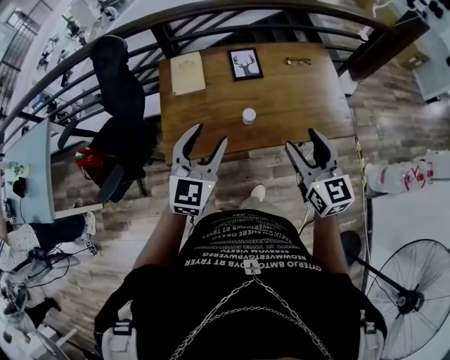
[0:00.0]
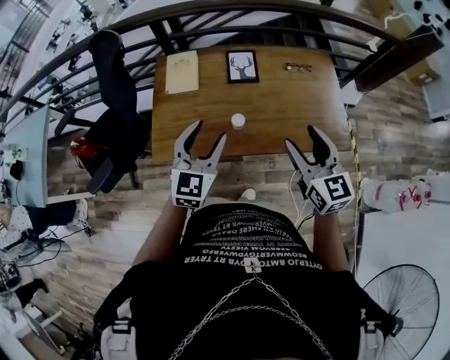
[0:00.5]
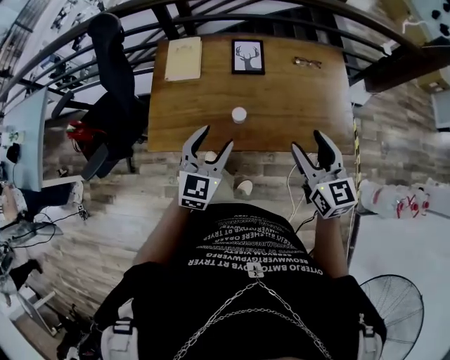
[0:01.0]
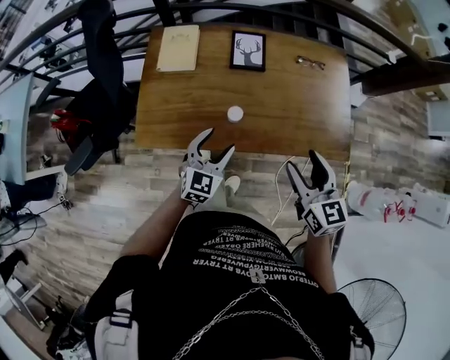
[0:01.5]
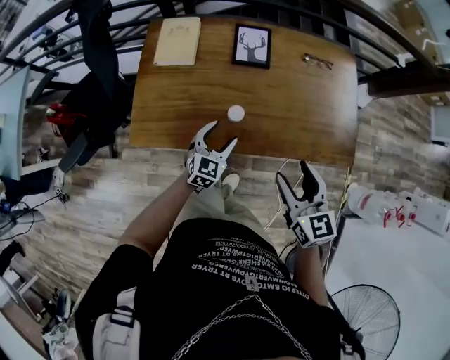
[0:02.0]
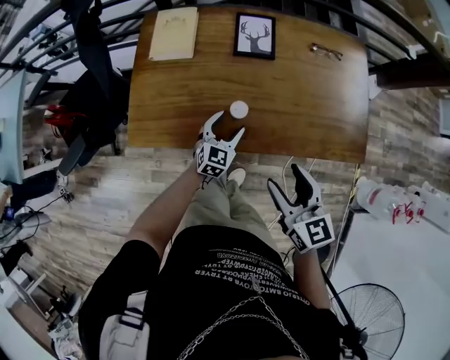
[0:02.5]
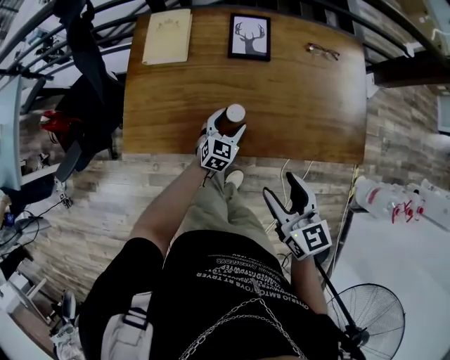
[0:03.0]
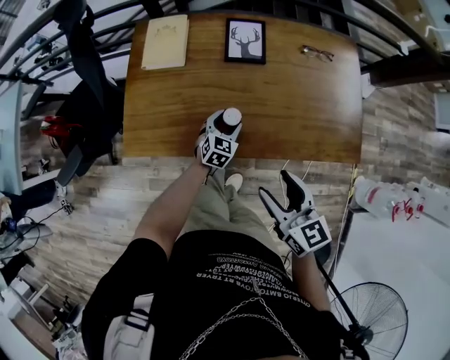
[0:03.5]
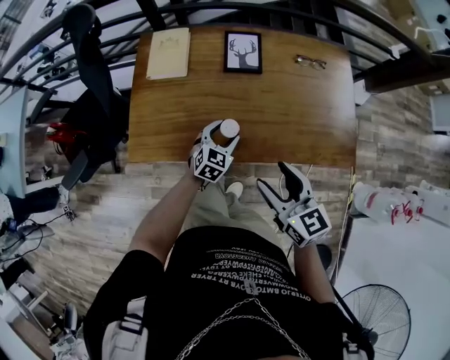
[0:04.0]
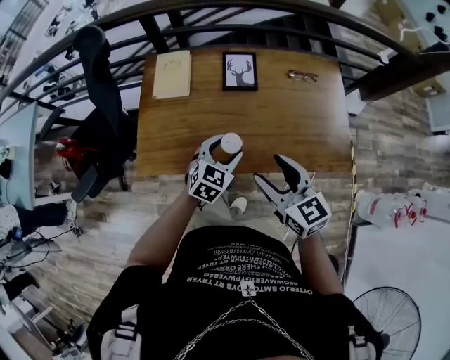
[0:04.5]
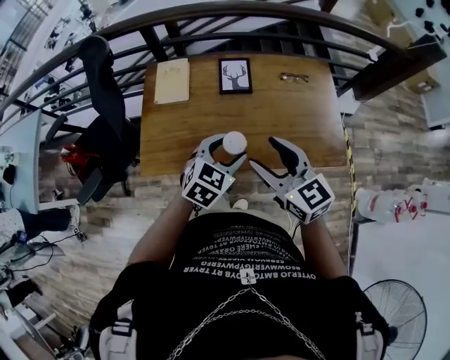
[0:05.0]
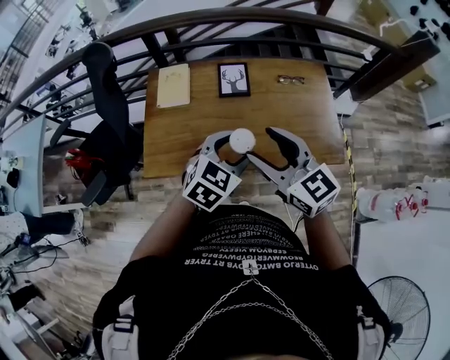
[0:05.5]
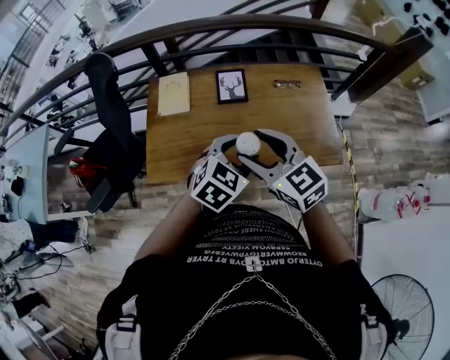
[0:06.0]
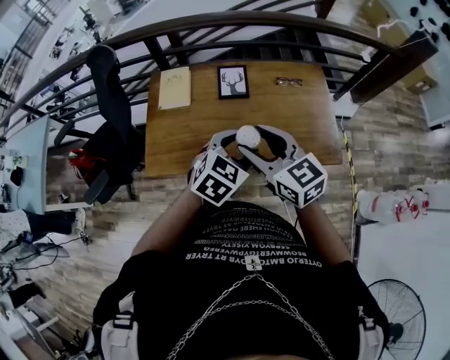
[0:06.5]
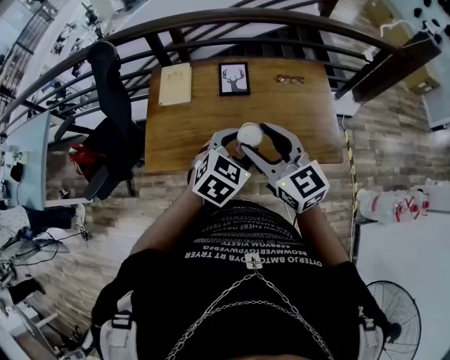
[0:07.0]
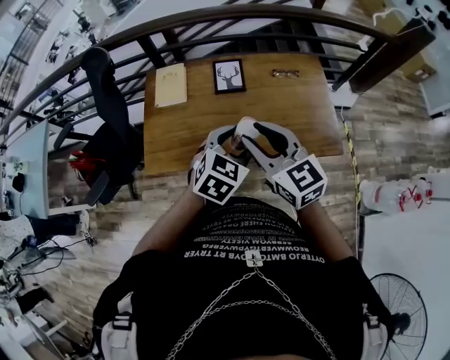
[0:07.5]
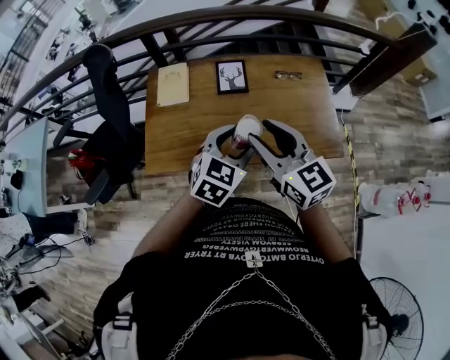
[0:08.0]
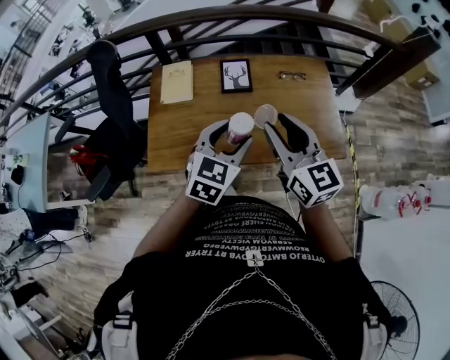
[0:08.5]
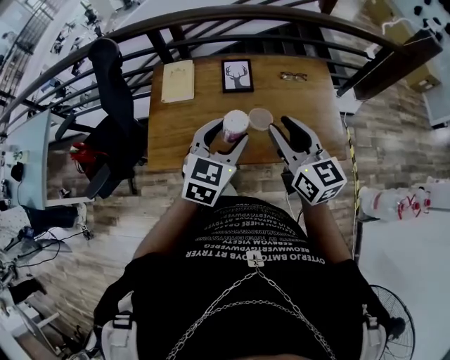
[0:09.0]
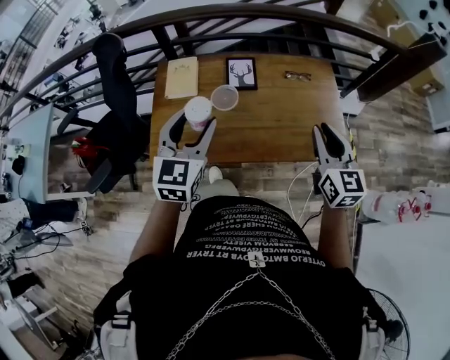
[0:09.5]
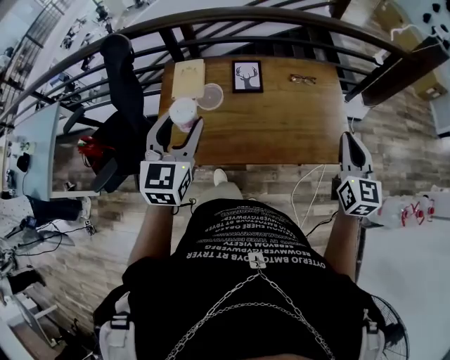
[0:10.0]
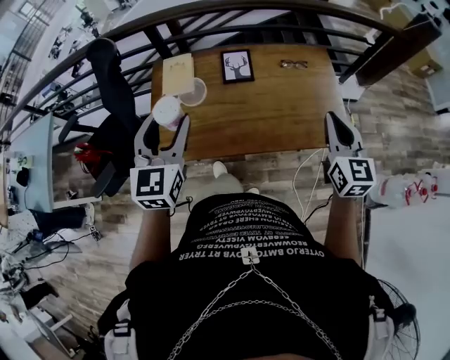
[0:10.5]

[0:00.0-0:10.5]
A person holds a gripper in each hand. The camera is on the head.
0.0 to 2.0 s: The right gripper goes roughly 15 cm downward and to the right. The left gripper travels downward by roughly 30 cm.
2.0 to 4.0 s: The left gripper reaches roughly 10 cm downward, then returns.
4.0 to 6.5 s: The right gripper travels upward by some 15 cm. Meanwhile the left gripper travels upward by some 30 cm.
6.5 to 8.5 s: The right gripper changes place by about 5 cm.
8.5 to 10.5 s: The left gripper is displaced to the left and upward by roughly 15 cm, and rotates about 30 degrees. Meanwhile the right gripper heads to the right, covering roughly 15 cm, rotates about 20 degrees, and closes up.

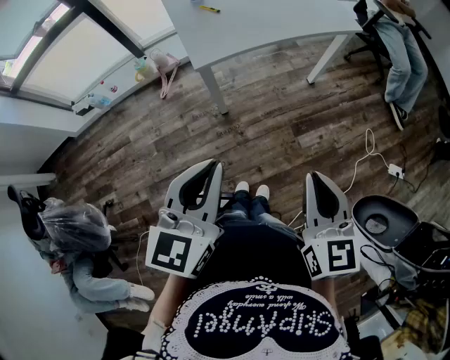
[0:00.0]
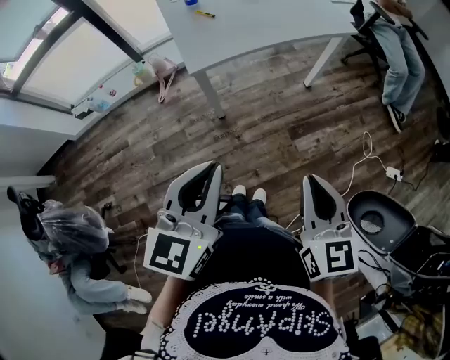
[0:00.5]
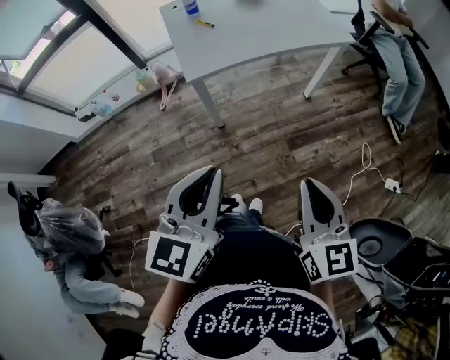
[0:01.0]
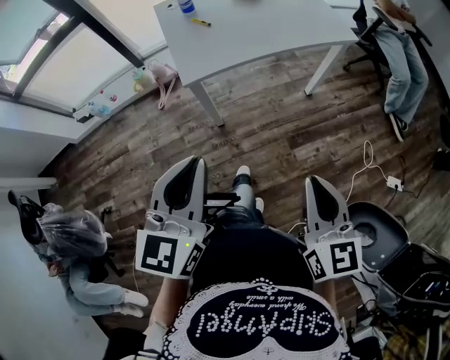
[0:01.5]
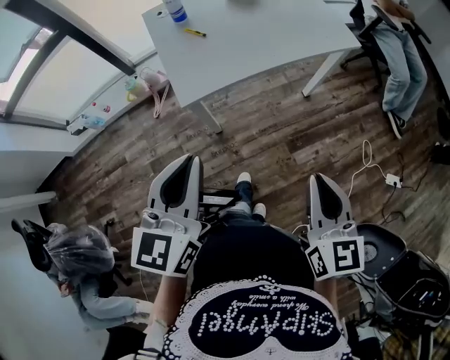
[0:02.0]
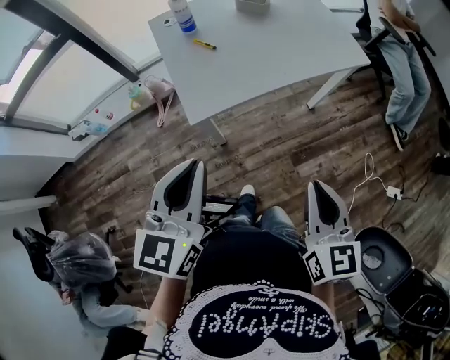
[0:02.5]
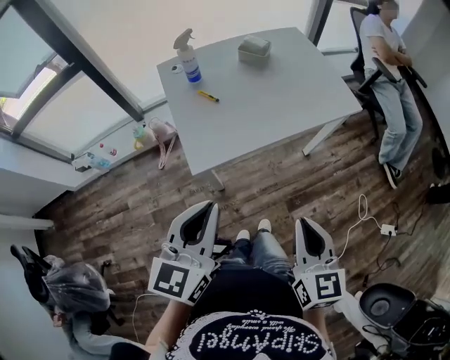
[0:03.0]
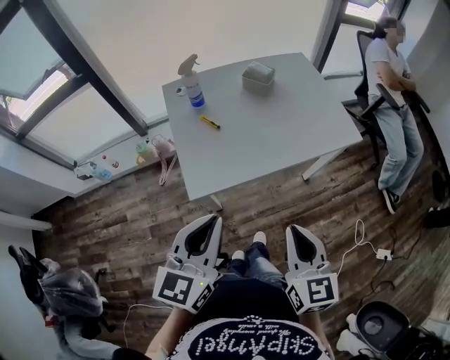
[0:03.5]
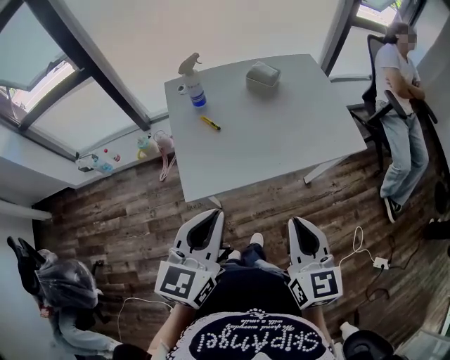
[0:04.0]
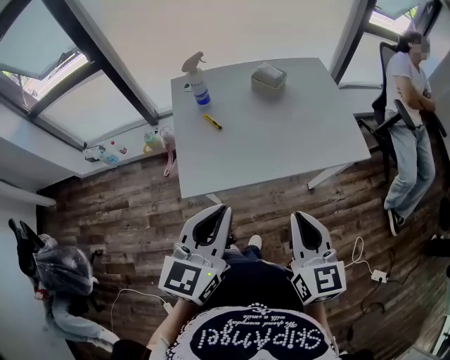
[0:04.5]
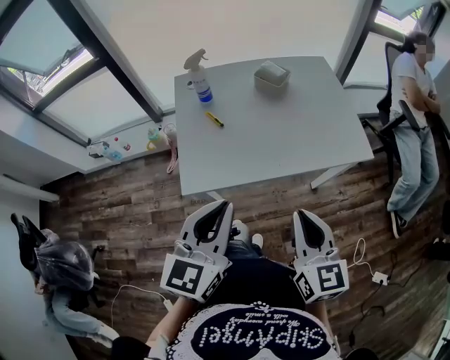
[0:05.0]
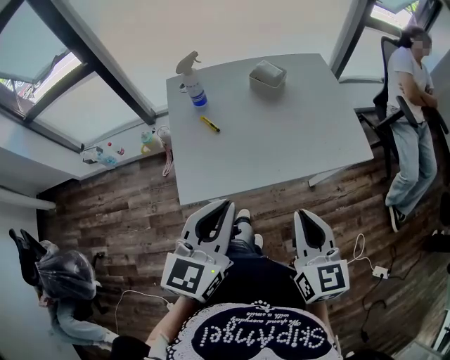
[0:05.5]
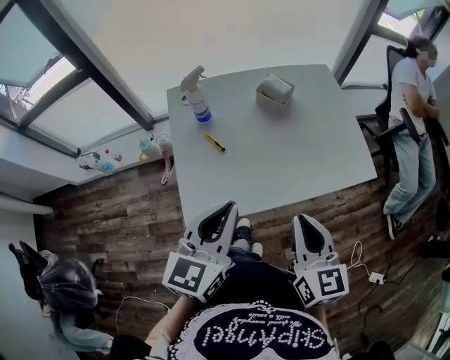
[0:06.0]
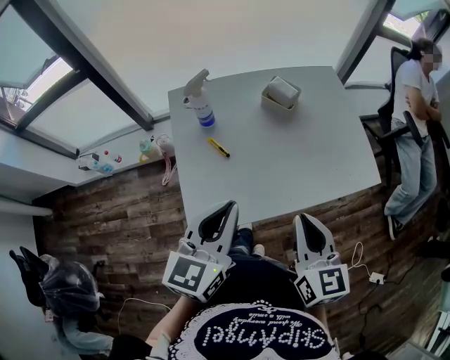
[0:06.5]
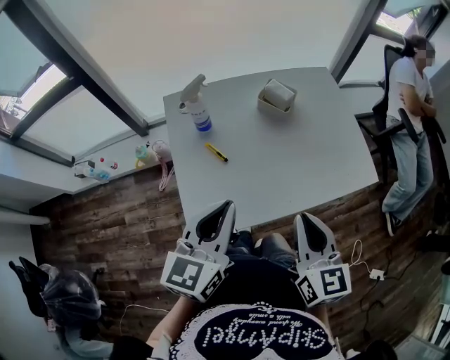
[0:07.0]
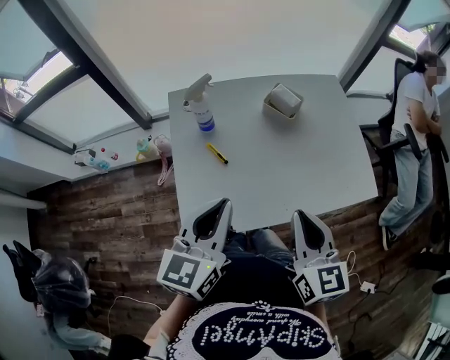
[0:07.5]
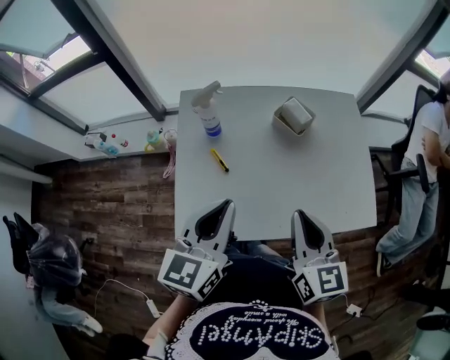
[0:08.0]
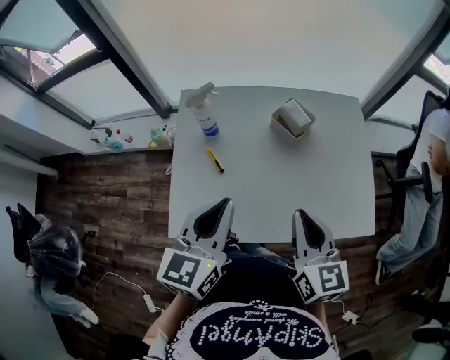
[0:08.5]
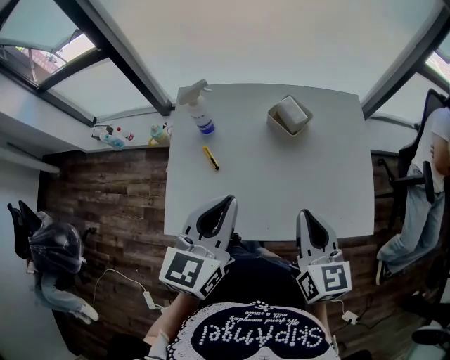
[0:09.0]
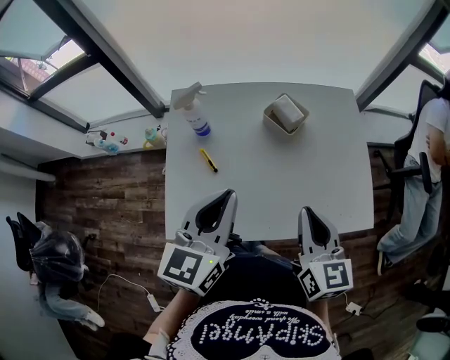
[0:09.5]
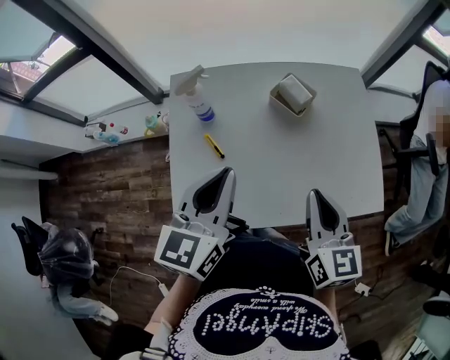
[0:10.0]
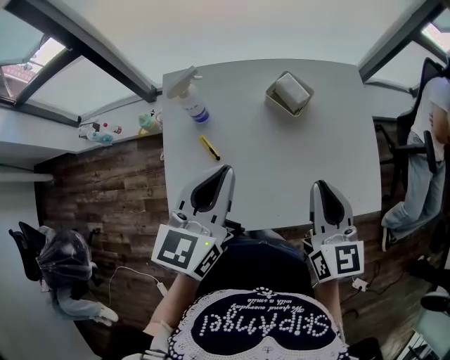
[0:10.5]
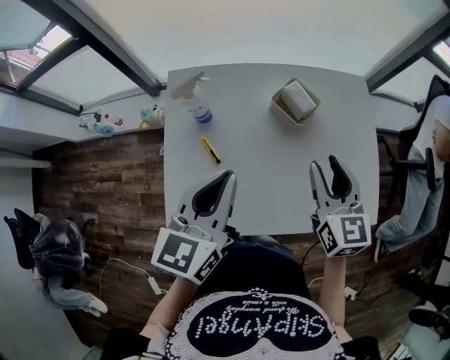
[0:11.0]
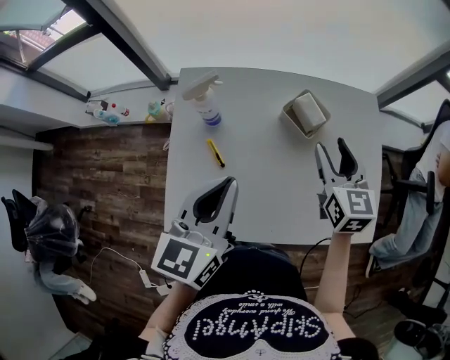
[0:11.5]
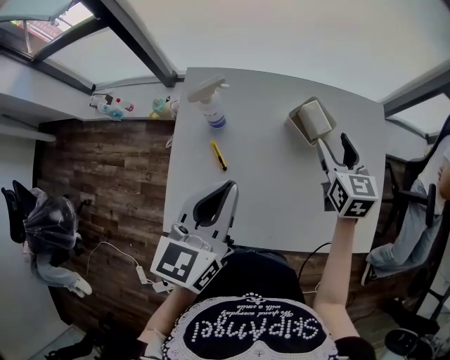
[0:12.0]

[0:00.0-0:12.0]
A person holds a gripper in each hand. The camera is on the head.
0.0 to 2.0 s: The grippers both shift forward by about 15 cm.
2.0 to 4.0 s: The two grippers go approximately 15 cm forward.
4.0 to 6.0 s: Both grippers move forward, roughly 10 cm.
6.0 to 8.0 s: Both grippers move forward, about 10 cm.
8.0 to 10.0 s: The right gripper shifts by about 5 cm; the left gripper travels forward by approximately 5 cm.
10.0 to 12.0 s: The right gripper travels forward by about 25 cm, and opens up.

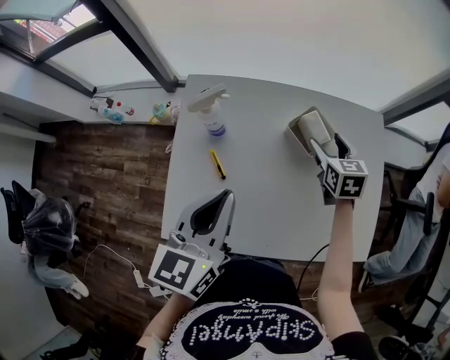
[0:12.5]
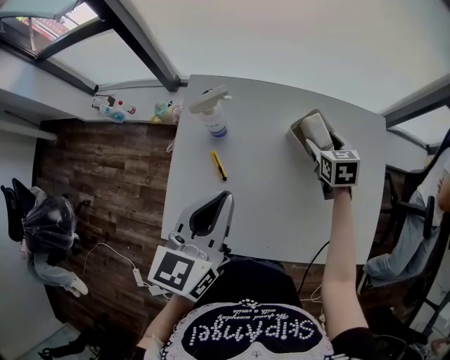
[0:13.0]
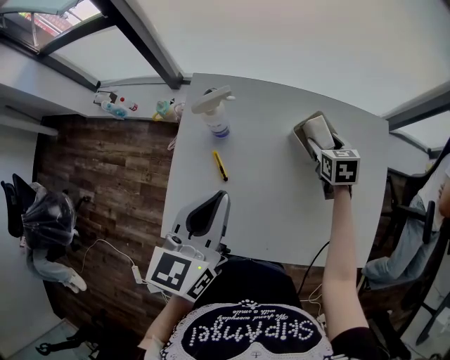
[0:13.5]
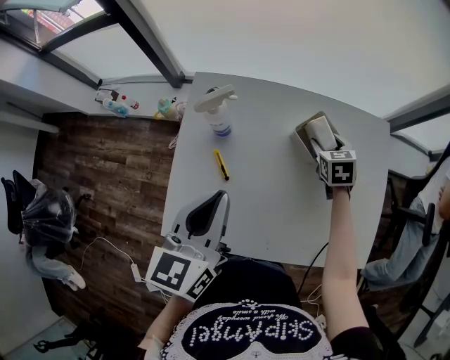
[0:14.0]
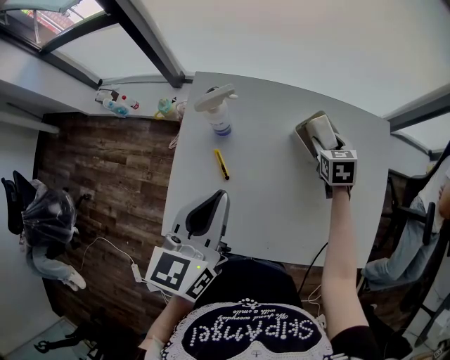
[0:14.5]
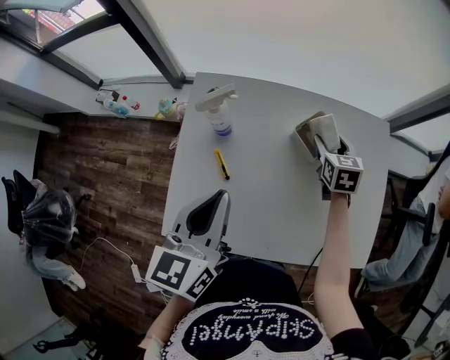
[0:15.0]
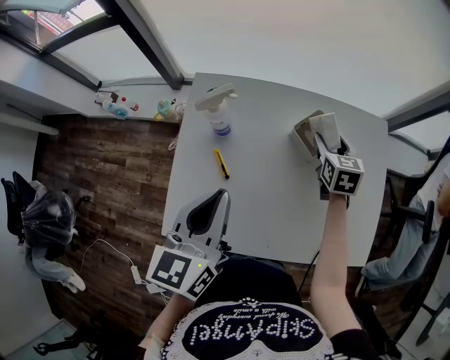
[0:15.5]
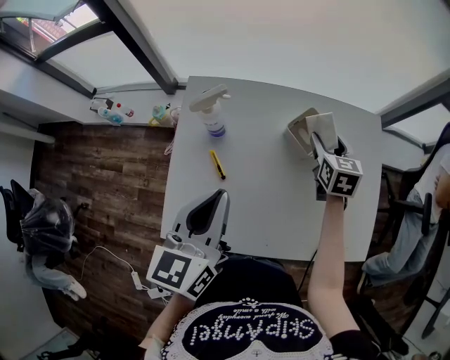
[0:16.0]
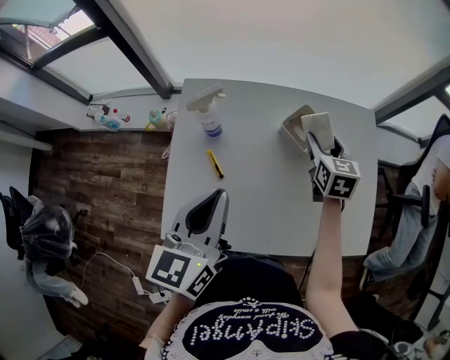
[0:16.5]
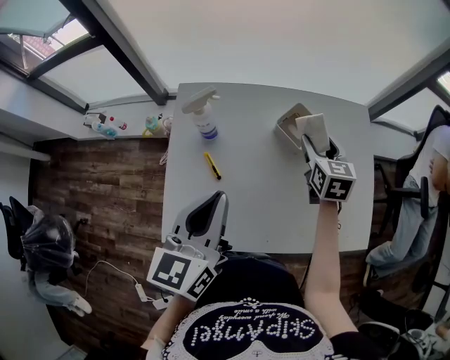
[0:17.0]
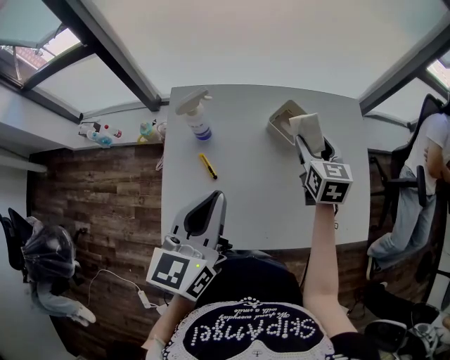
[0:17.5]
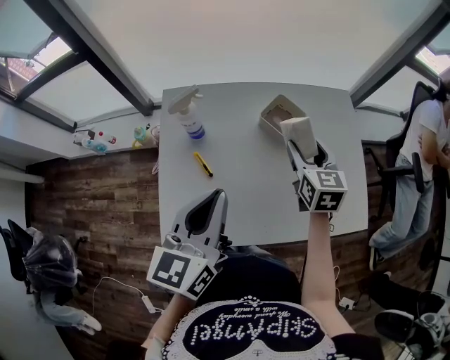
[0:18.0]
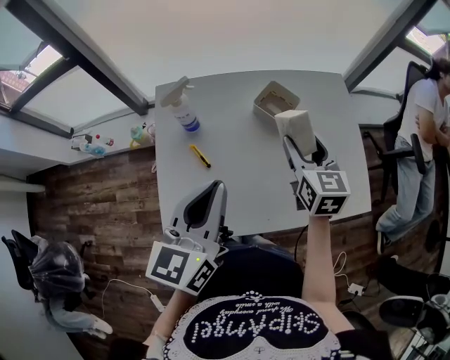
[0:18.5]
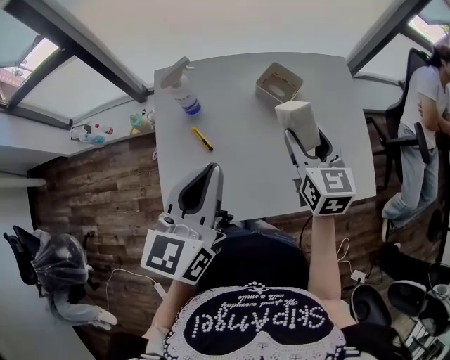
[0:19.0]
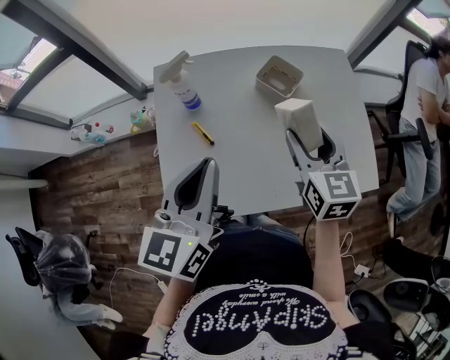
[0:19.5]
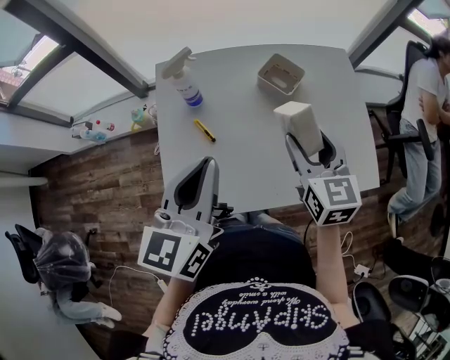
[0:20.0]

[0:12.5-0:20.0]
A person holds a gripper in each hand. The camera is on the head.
12.5 to 14.5 s: The right gripper heads downward, covering about 5 cm.
14.5 to 16.5 s: The right gripper heads upward, covering approximately 10 cm, and changes its angle by approximately 20 degrees.
16.5 to 18.0 s: The right gripper shifts approximately 10 cm backward.
18.0 to 20.0 s: The right gripper travels backward by some 10 cm.
